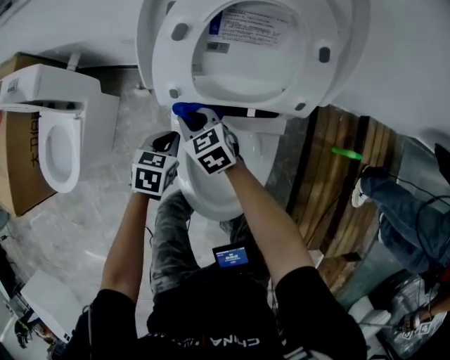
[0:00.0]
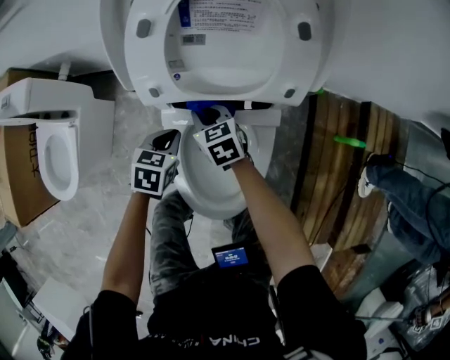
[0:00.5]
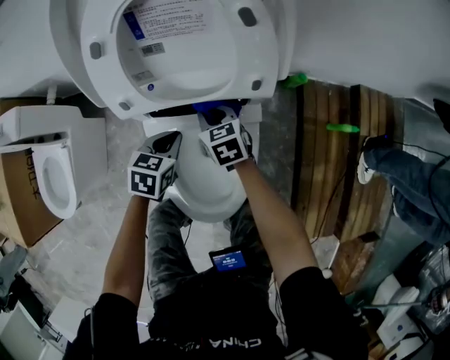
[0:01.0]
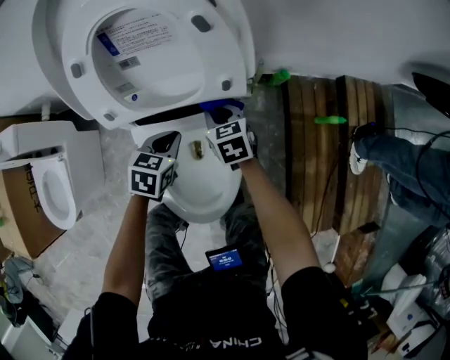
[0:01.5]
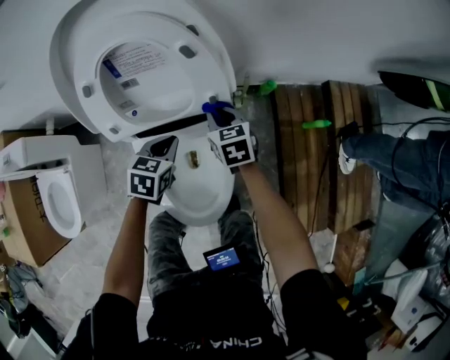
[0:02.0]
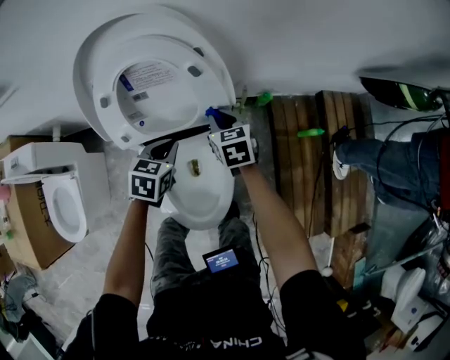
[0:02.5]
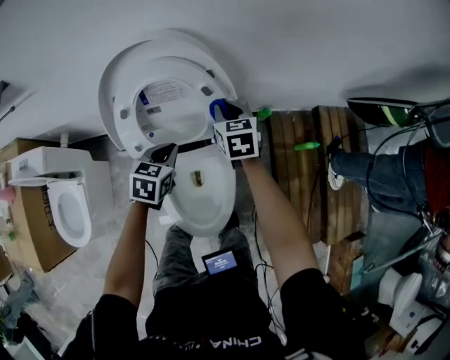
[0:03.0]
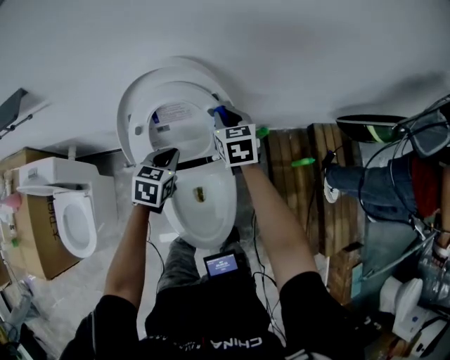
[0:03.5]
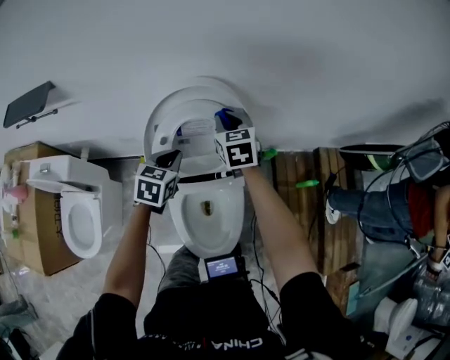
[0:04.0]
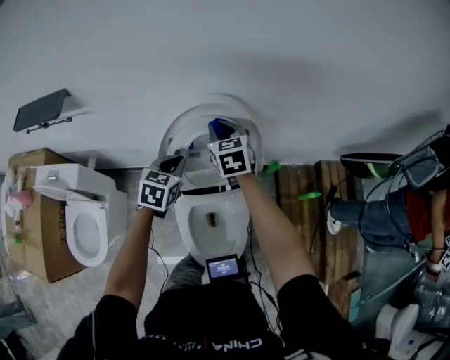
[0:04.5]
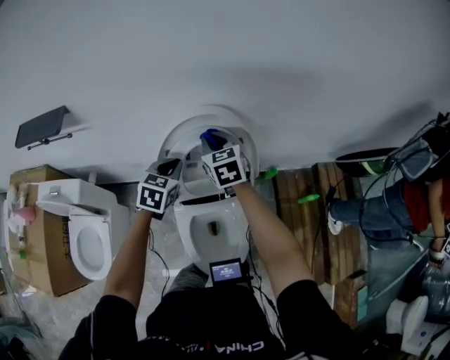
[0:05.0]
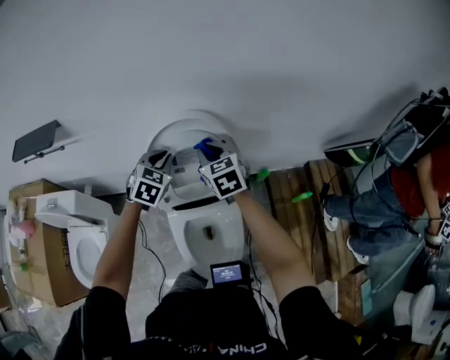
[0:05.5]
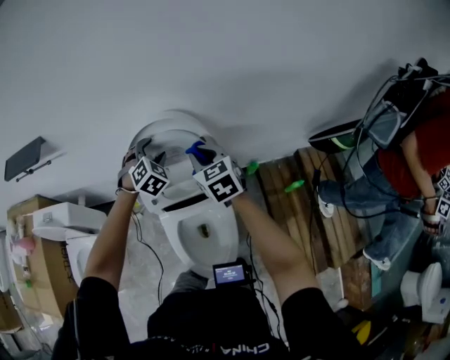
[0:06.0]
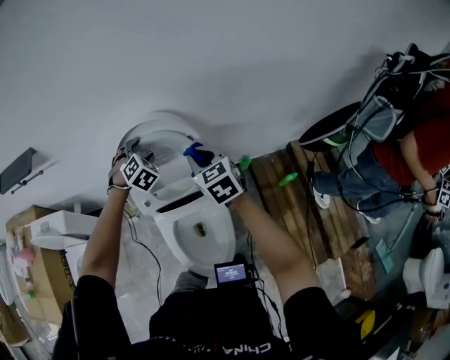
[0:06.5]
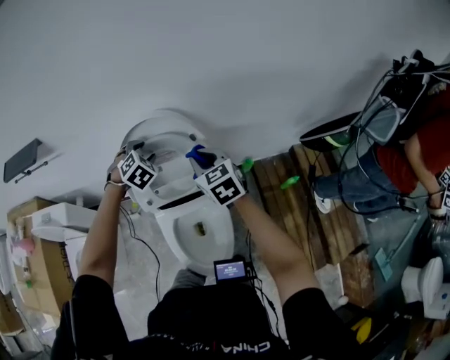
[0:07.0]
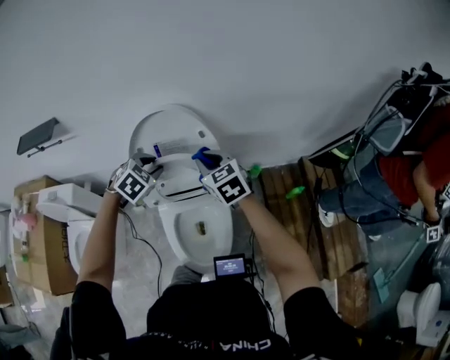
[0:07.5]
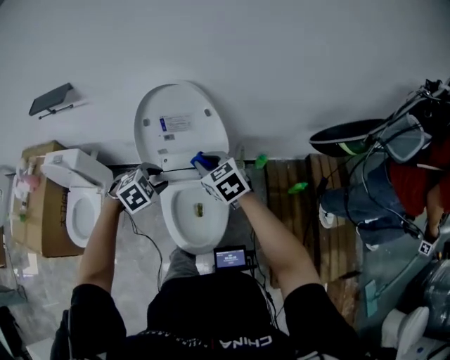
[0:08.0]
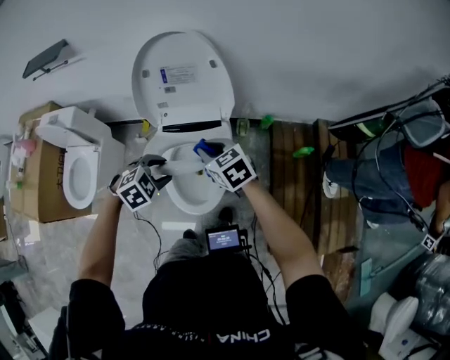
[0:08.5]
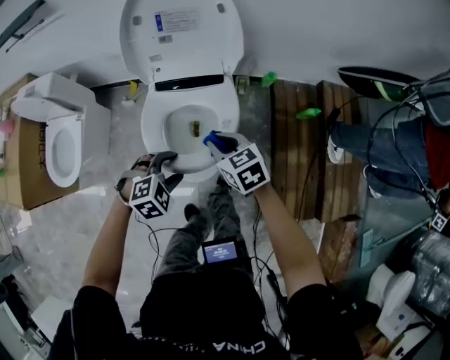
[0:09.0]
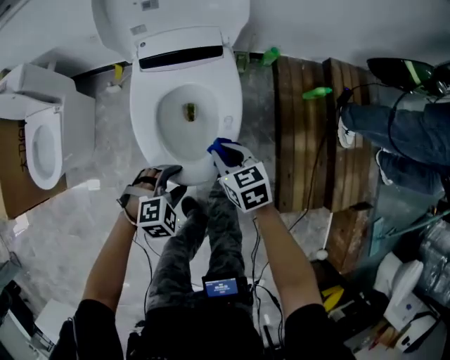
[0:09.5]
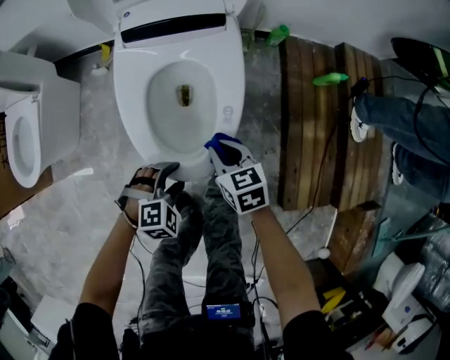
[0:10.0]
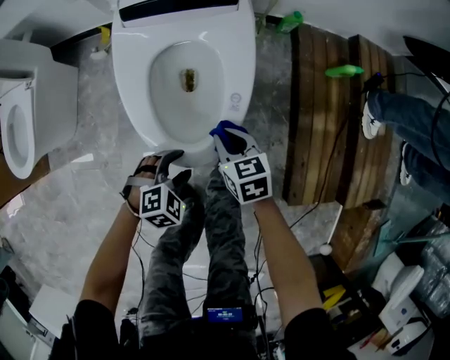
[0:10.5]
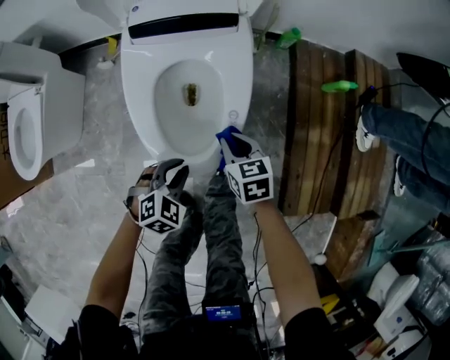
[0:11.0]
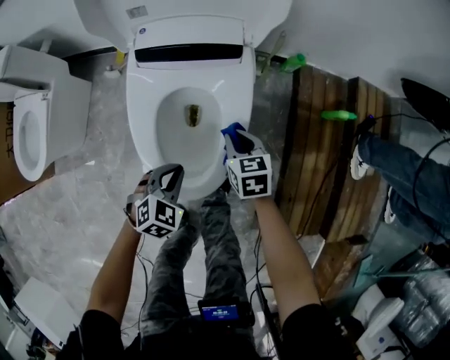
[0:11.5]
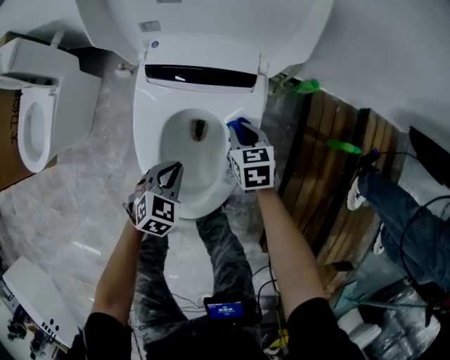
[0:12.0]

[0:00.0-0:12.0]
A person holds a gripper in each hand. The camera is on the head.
0:00.0 to 0:02.0: The right gripper travels to the right by some 30 cm, and swivels about 30 degrees. The left gripper is displaced to the right and upward by approximately 20 cm.
0:02.0 to 0:04.0: The left gripper heads upward and to the left, covering roughly 25 cm. The right gripper travels upward by about 30 cm.
0:04.0 to 0:06.0: The left gripper is displaced forward and upward by some 10 cm, rolls clockwise, seen from behind, by about 50 degrees, and opens; the right gripper moves backward and upward, about 10 cm, and reaches about 5 cm to the left, then returns.
0:06.0 to 0:08.0: The right gripper heads backward, covering about 15 cm. Meanwhile the left gripper heads backward, covering approximately 25 cm, turns by approximately 30 degrees, and closes.
0:08.0 to 0:10.0: The grippers both shift downward and backward by approximately 50 cm. The right gripper turns by approximately 20 degrees; the left gripper opens.
0:10.0 to 0:12.0: The two grippers go roughly 20 cm forward. The left gripper twists about 50 degrees counterclockwise, seen from behind, and closes.

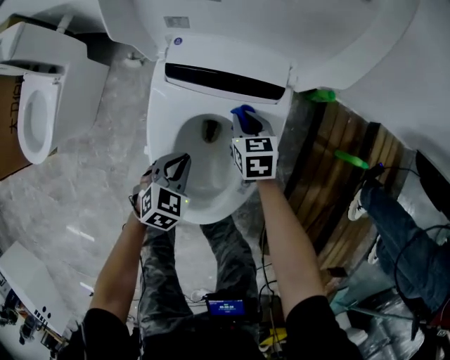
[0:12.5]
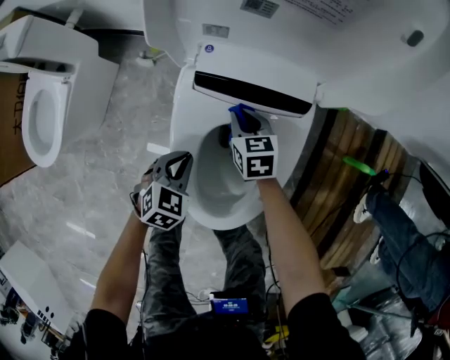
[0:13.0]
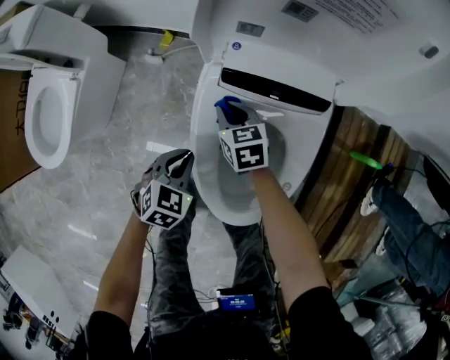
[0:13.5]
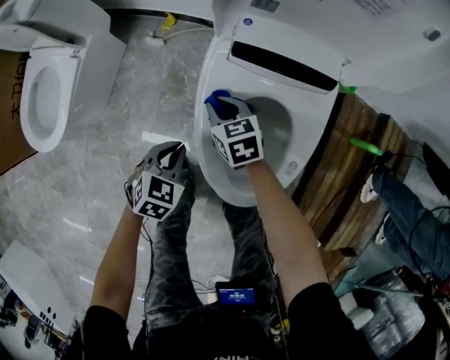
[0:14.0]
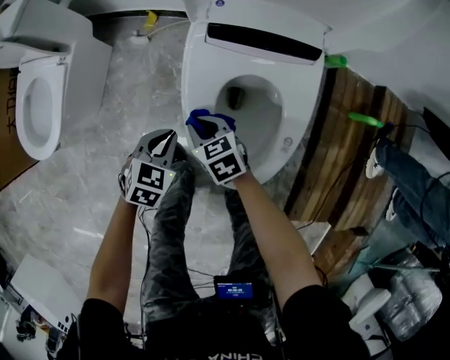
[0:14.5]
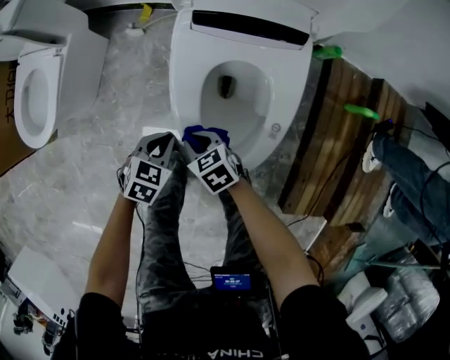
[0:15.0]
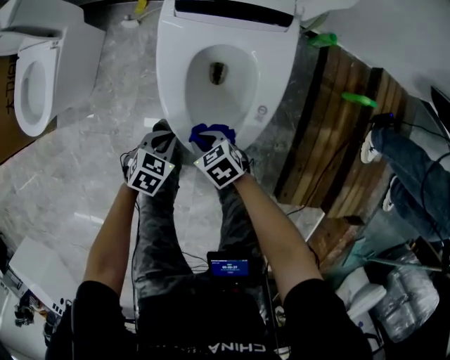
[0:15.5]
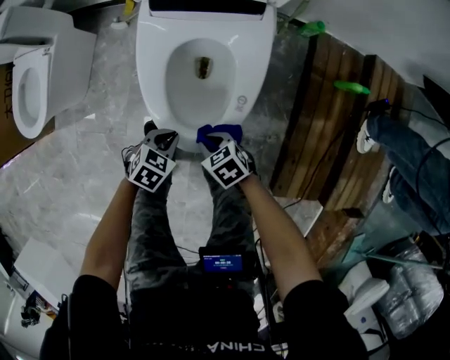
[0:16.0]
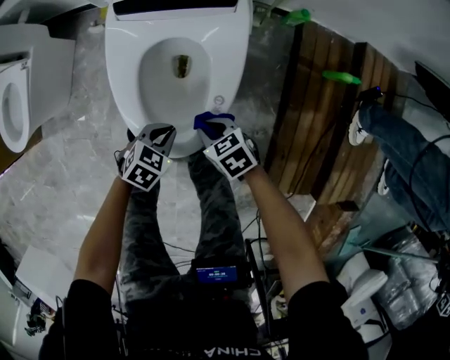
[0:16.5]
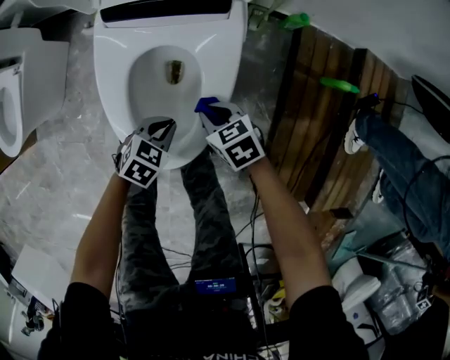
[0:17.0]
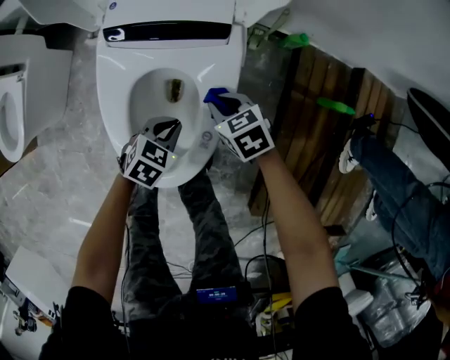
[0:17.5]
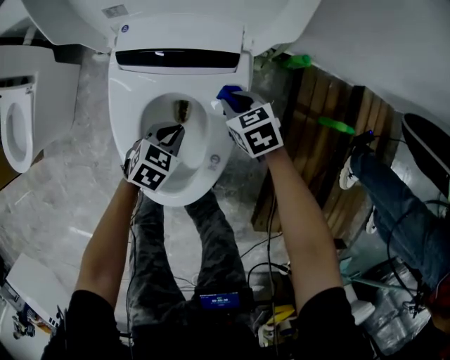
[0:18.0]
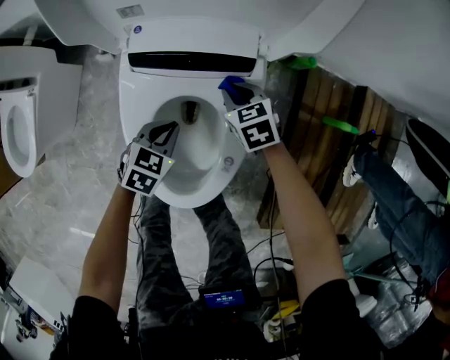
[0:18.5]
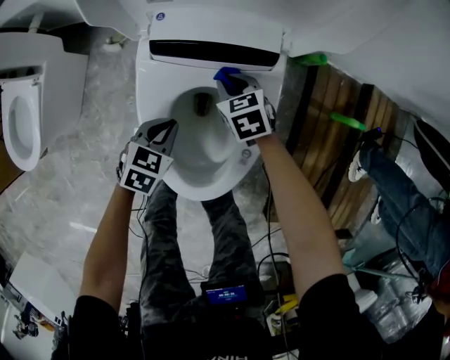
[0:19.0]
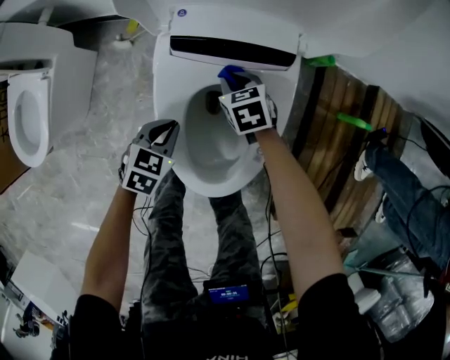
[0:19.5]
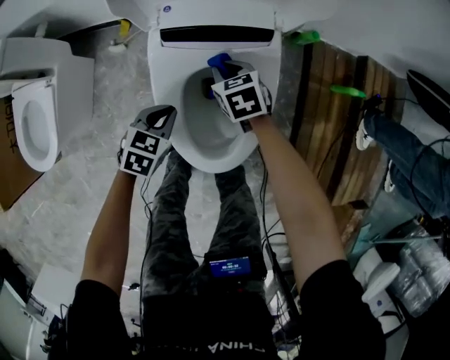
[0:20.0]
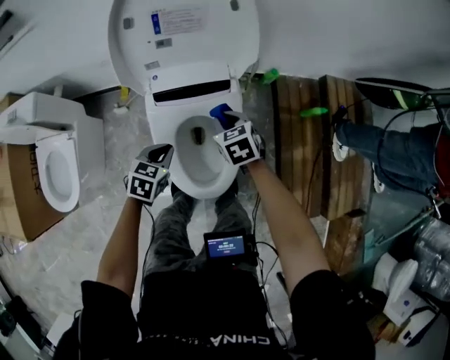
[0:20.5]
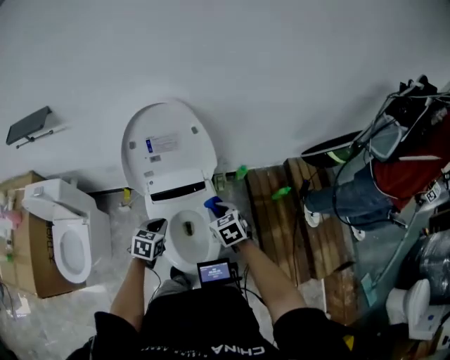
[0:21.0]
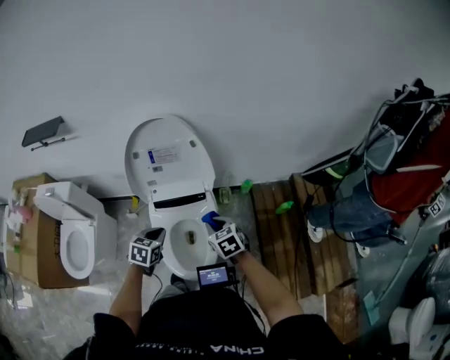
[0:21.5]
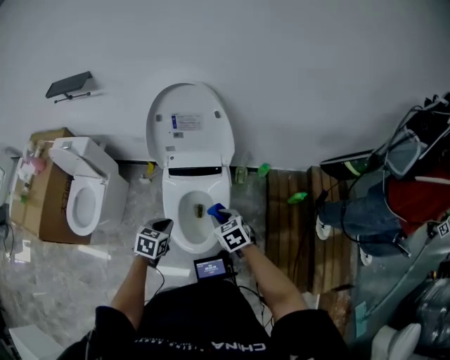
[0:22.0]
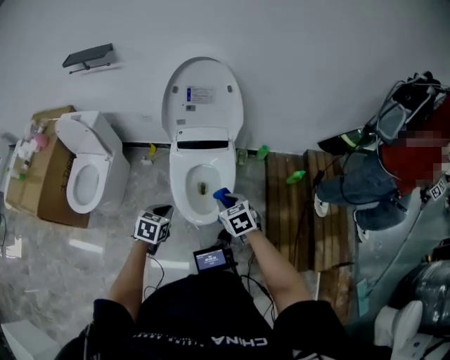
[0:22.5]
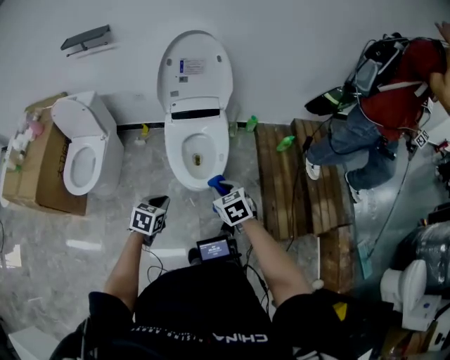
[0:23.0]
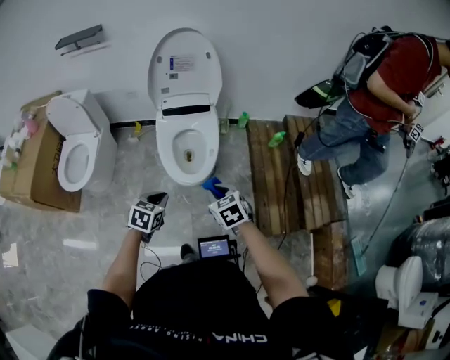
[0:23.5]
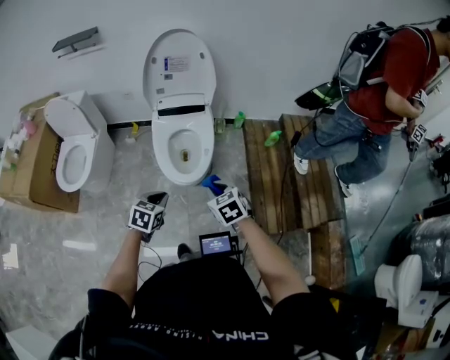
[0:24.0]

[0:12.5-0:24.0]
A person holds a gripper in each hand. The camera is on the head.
0:12.5 to 0:14.5: The right gripper is displaced to the left and backward by roughly 30 cm. Meanwhile the left gripper heads to the left, covering roughly 15 cm.
0:14.5 to 0:16.5: The left gripper ends up roughly 25 cm from where it was. Meanwhile the right gripper changes place by approximately 25 cm.
0:16.5 to 0:18.5: The left gripper ends up about 20 cm from where it was. Meanwhile the right gripper changes place by approximately 30 cm.
0:18.5 to 0:20.0: The grippers both shift to the left and upward by roughly 10 cm.
0:20.0 to 0:22.0: The left gripper moves upward, roughly 30 cm; the right gripper goes some 35 cm upward, backward and to the right.
0:22.0 to 0:24.0: Both grippers move backward, roughly 30 cm.

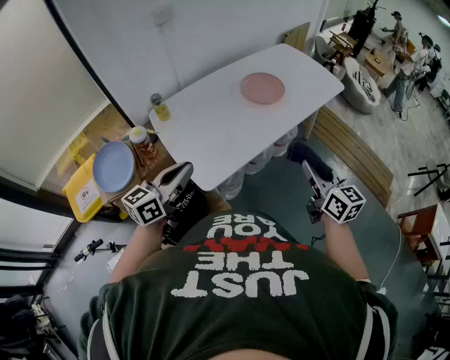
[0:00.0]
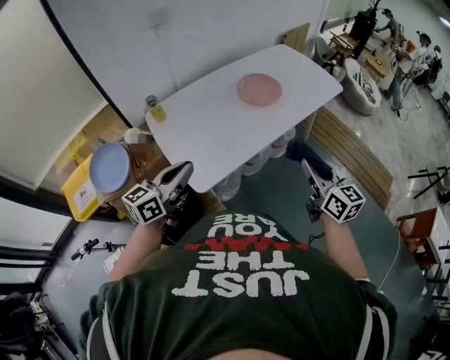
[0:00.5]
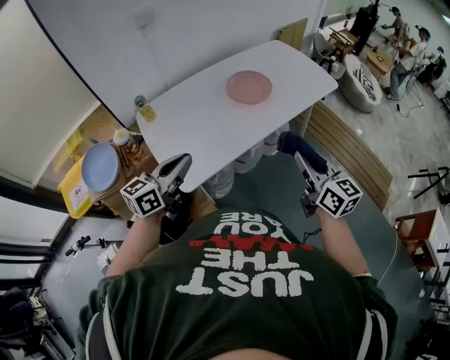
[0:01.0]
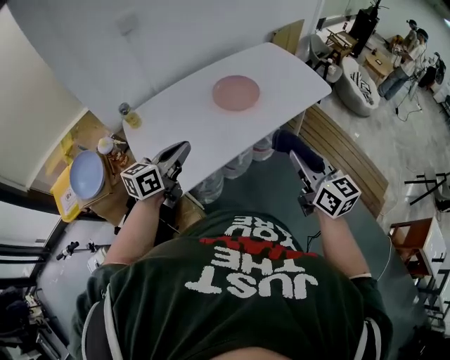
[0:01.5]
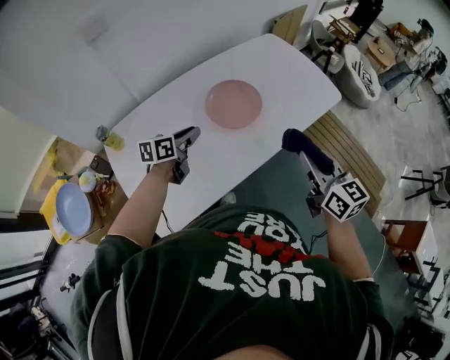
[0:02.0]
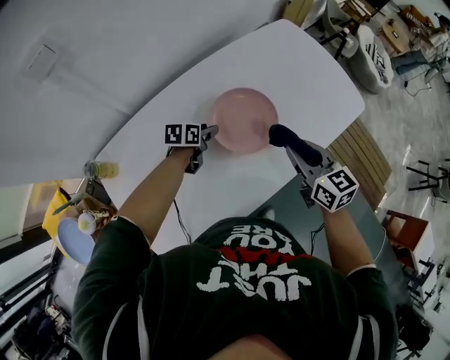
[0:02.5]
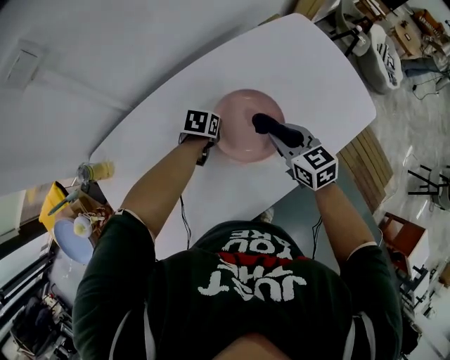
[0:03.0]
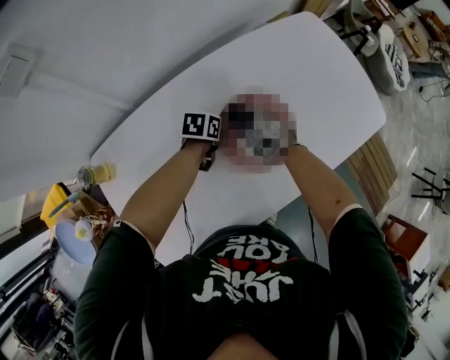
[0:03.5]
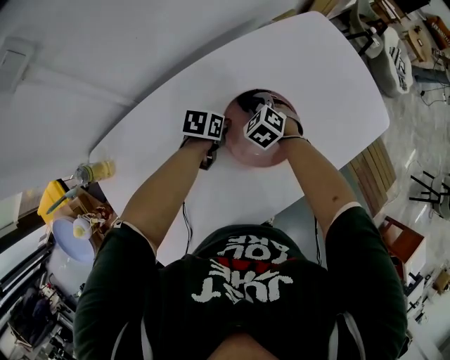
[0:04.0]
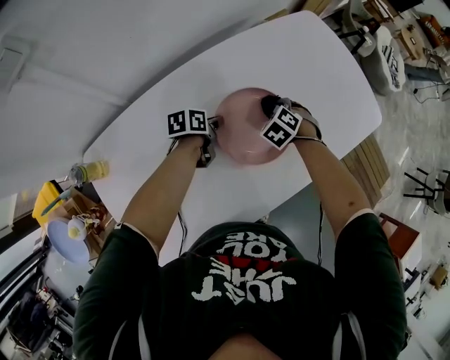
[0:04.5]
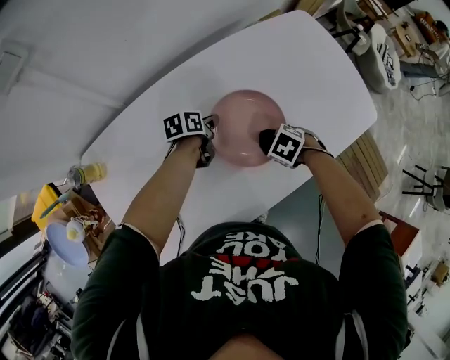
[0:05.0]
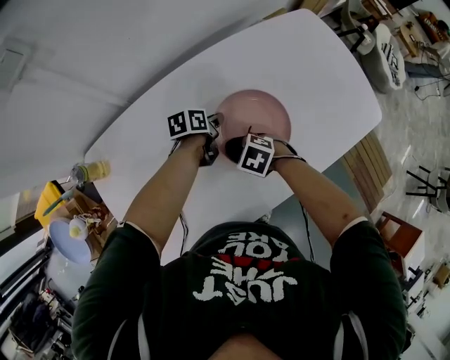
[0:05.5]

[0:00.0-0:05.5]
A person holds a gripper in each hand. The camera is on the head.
0:00.0 to 0:02.0: The two grippers go approximately 35 cm forward. The left gripper changes its angle by some 30 degrees.
0:02.0 to 0:03.5: The right gripper shifts approximately 50 cm downward, forward and to the left, and tilts its fingers about 40 degrees downward. The left gripper is displaced forward and downward by approximately 30 cm, angles its fingers downward, by approximately 30 degrees, and opens, then closes again.
0:03.5 to 0:05.5: The left gripper turns by roughly 30 degrees; the right gripper ends up roughly 10 cm from where it was, and swivels about 30 degrees.
